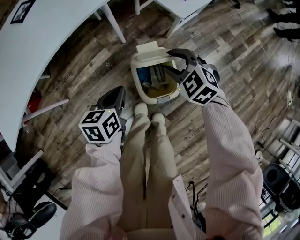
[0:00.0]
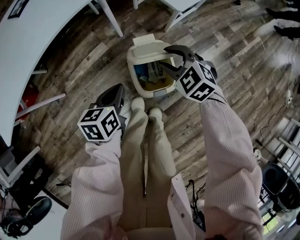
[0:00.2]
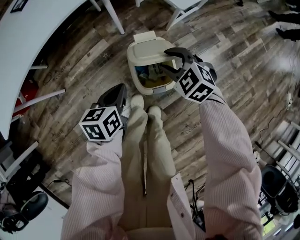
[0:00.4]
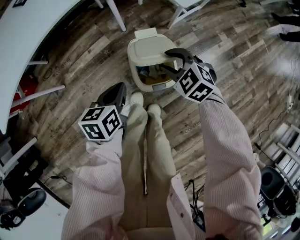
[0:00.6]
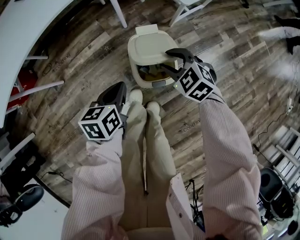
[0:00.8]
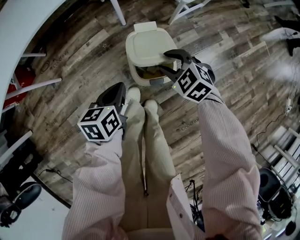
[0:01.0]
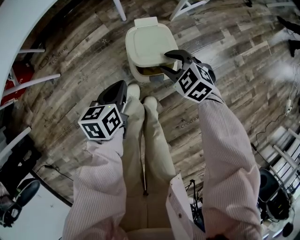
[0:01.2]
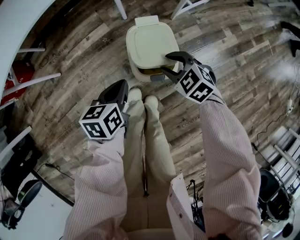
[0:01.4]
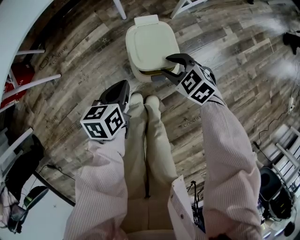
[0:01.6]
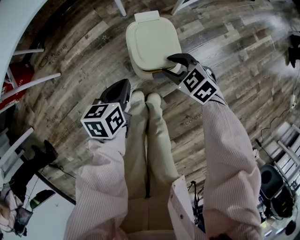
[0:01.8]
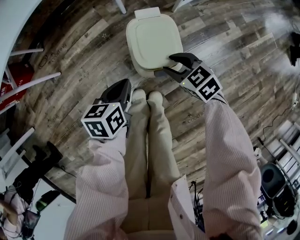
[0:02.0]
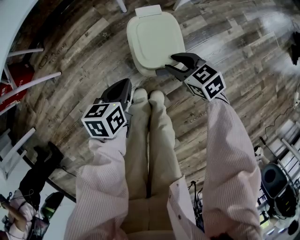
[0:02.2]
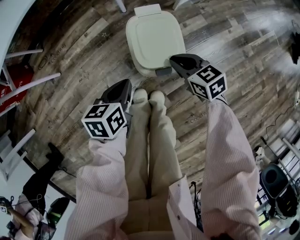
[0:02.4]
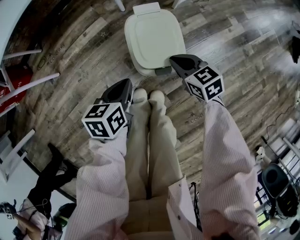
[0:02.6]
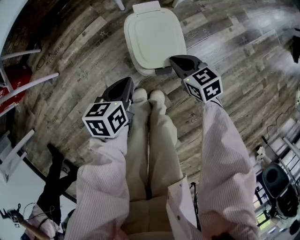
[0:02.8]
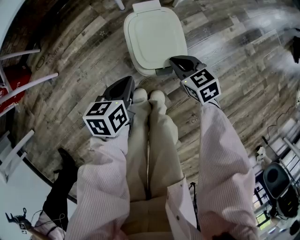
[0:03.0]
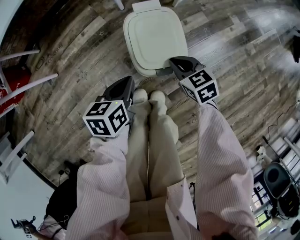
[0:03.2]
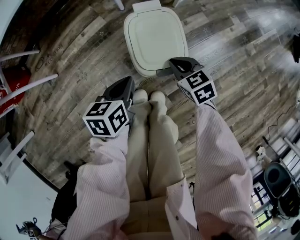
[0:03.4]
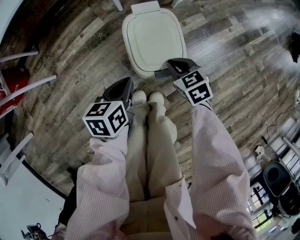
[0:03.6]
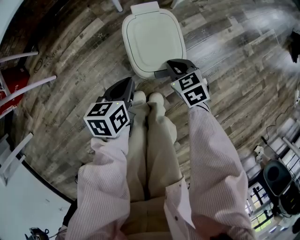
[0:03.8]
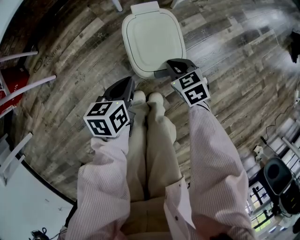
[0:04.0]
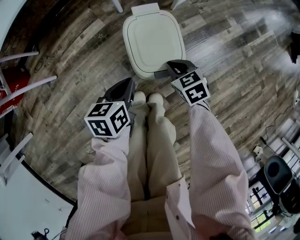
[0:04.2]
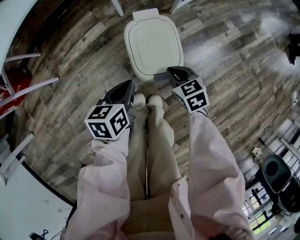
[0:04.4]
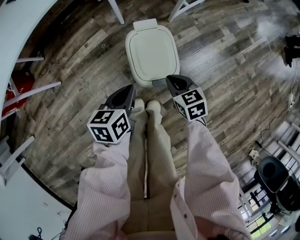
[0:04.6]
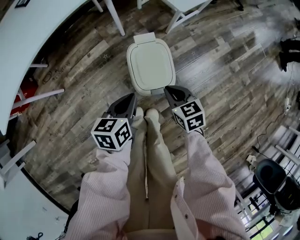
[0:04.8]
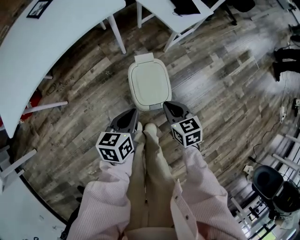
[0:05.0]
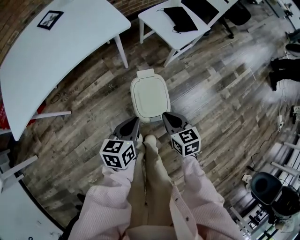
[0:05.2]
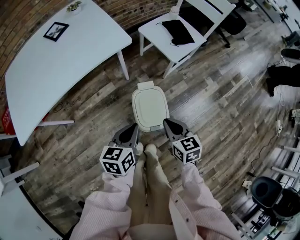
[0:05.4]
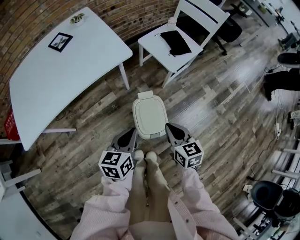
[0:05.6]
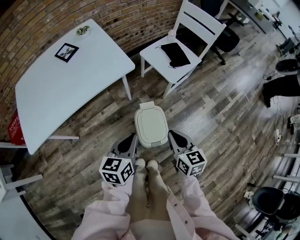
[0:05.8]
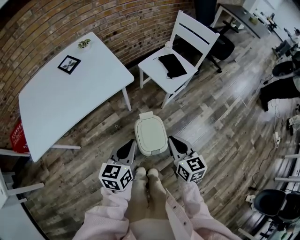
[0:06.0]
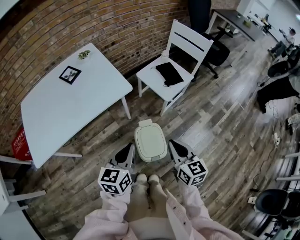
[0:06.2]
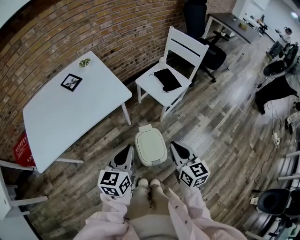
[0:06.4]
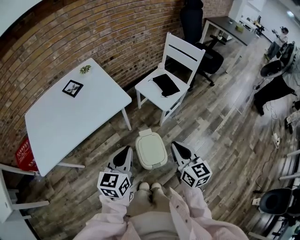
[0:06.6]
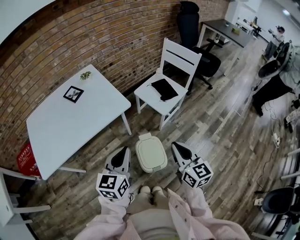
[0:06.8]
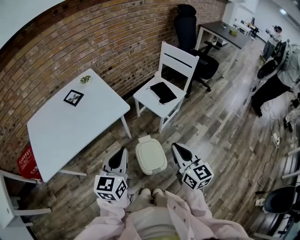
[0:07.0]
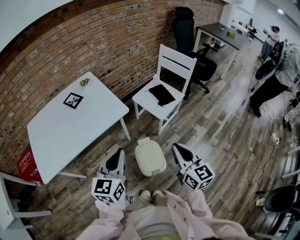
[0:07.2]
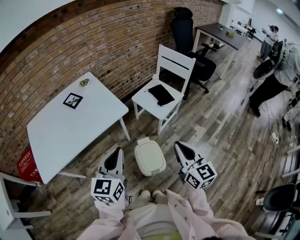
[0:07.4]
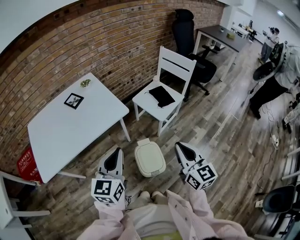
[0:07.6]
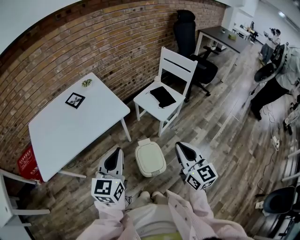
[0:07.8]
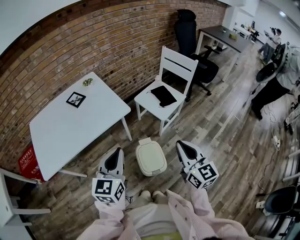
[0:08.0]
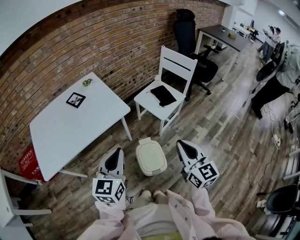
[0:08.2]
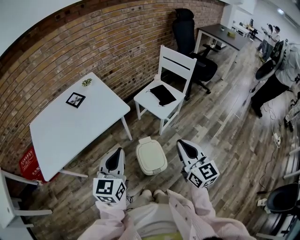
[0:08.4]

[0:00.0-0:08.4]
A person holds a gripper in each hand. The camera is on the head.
0:00.0 to 0:01.4: The left gripper moves backward, approximately 10 cm, while the right gripper moves backward and downward, roughly 15 cm.
0:01.4 to 0:02.8: The grippers both shift downward by about 5 cm. The right gripper turns by some 30 degrees, and closes.
0:02.8 to 0:04.2: The grippers make only small movements.
0:04.2 to 0:05.6: Both grippers move upward, approximately 30 cm. The right gripper turns by approximately 30 degrees.
0:05.6 to 0:07.0: Both grippers move upward, approximately 20 cm. The right gripper turns by approximately 30 degrees. Meanwhile the left gripper changes its angle by roughly 30 degrees.
0:07.0 to 0:08.4: The grippers make only small movements.

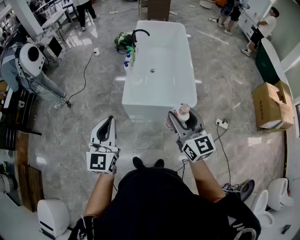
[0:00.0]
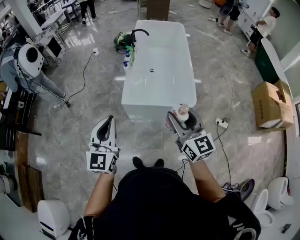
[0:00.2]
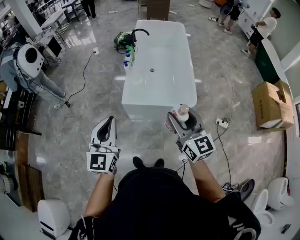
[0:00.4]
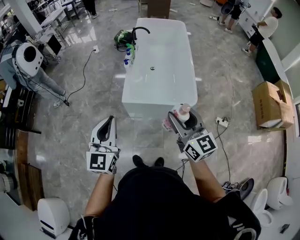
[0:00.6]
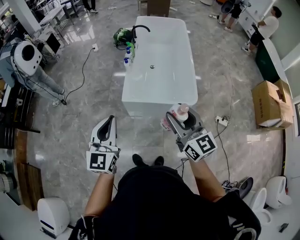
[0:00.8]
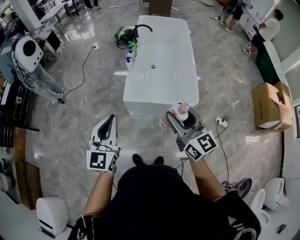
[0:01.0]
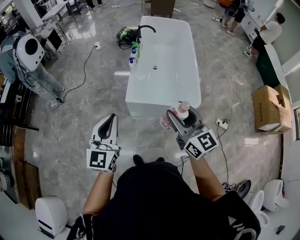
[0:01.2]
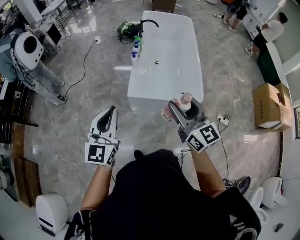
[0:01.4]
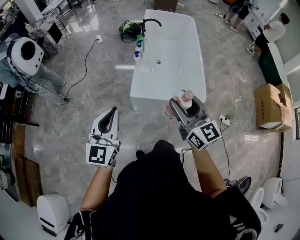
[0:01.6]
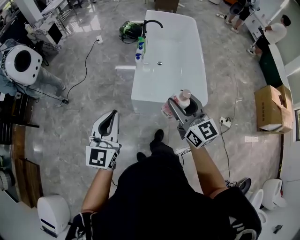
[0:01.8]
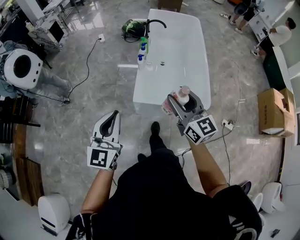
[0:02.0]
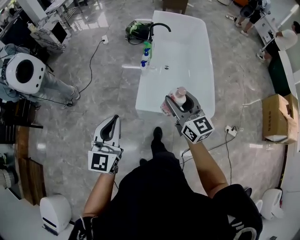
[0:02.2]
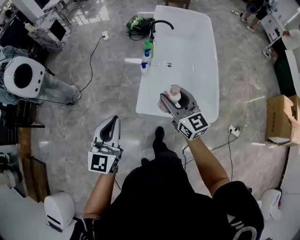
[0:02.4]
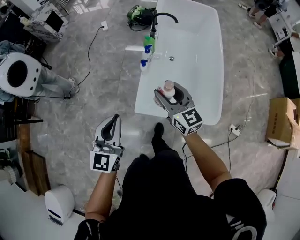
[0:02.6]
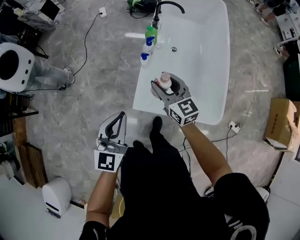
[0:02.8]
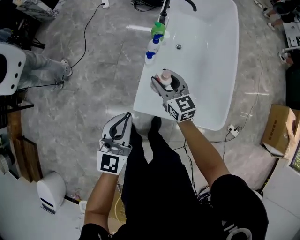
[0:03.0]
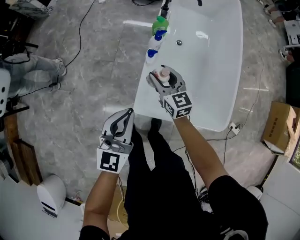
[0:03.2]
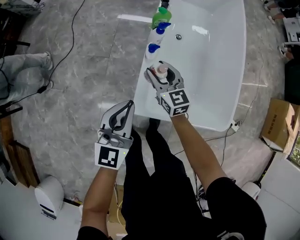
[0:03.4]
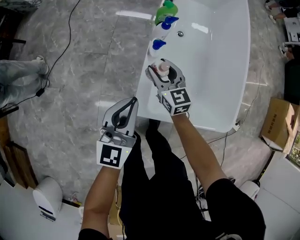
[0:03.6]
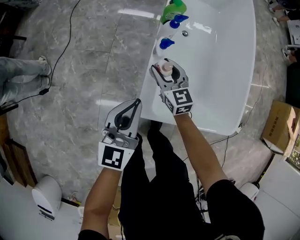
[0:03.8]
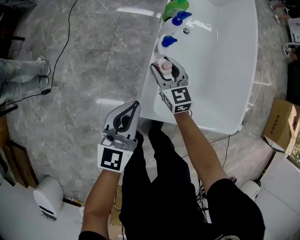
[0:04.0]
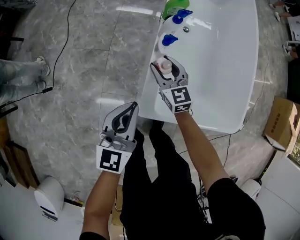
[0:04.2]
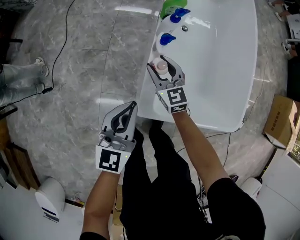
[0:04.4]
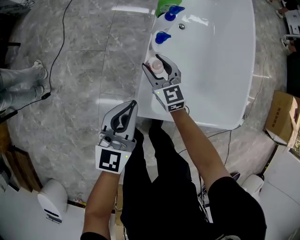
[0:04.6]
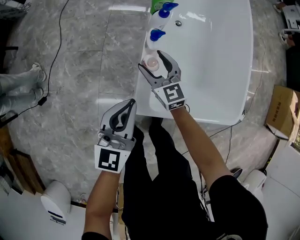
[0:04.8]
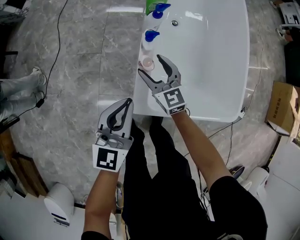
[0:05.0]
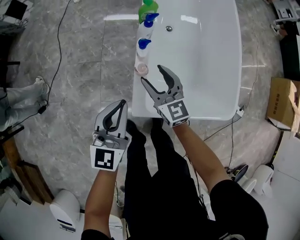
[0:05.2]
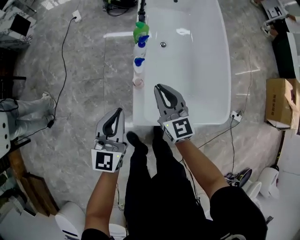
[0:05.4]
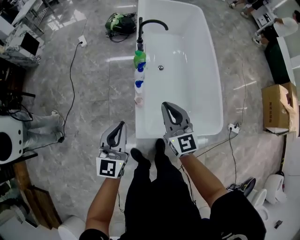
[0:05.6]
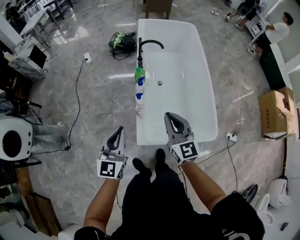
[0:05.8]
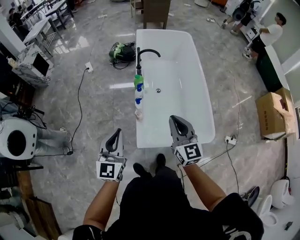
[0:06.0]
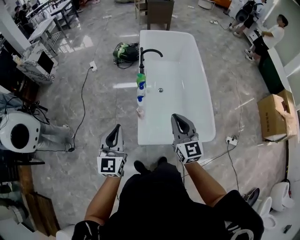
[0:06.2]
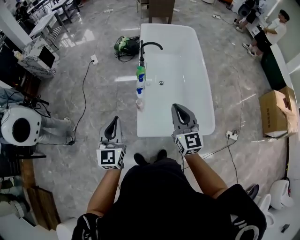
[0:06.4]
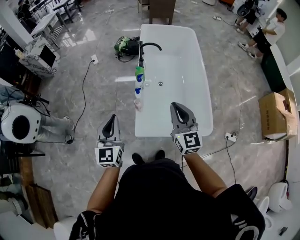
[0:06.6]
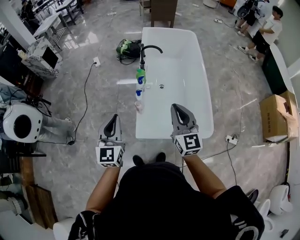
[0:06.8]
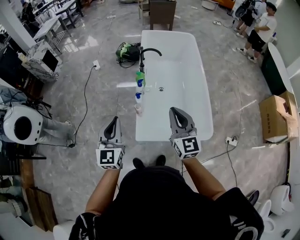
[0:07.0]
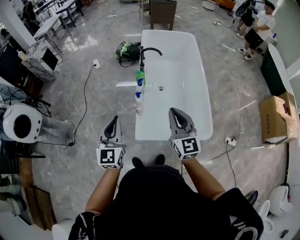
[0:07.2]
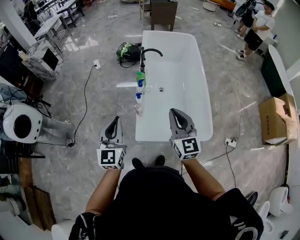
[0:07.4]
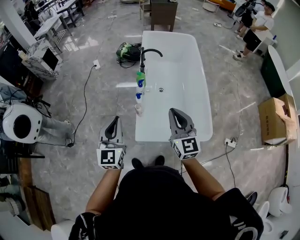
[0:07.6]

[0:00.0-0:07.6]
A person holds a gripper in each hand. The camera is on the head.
0:00.0 to 0:01.6: The grippers both shift to the left and forward by approximately 10 cm.
0:01.6 to 0:03.0: The grippers both shift forward and downward by about 50 cm. The right gripper rotates approximately 20 degrees.
0:03.0 to 0:04.6: The left gripper is displaced downward and forward by roughly 20 cm. Meanwhile the right gripper travels downward by approximately 25 cm.
0:04.6 to 0:06.0: The right gripper is displaced upward and backward by some 50 cm, changes its angle by roughly 30 degrees, and closes its fingers, while the left gripper travels upward by some 30 cm.
0:06.0 to 0:07.6: The left gripper ends up approximately 5 cm from where it was. Meanwhile the right gripper moves upward, roughly 5 cm.

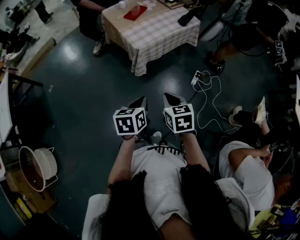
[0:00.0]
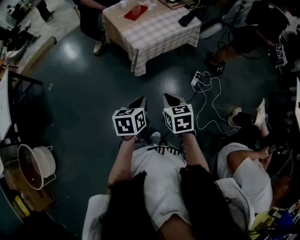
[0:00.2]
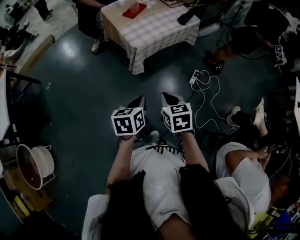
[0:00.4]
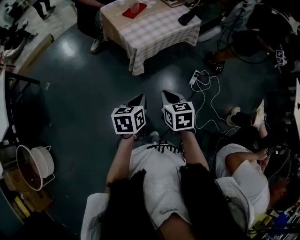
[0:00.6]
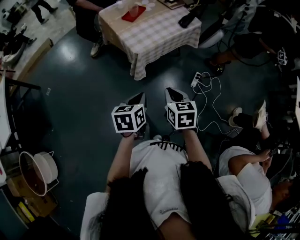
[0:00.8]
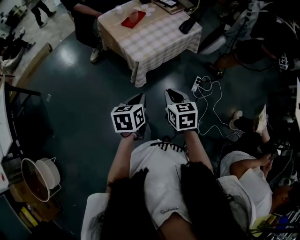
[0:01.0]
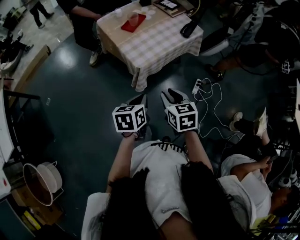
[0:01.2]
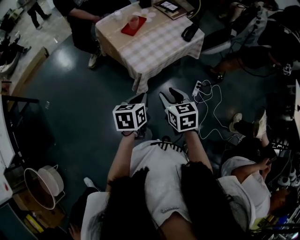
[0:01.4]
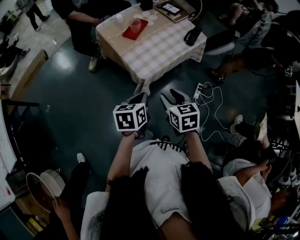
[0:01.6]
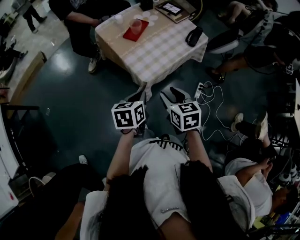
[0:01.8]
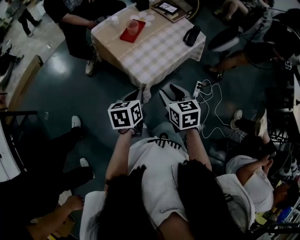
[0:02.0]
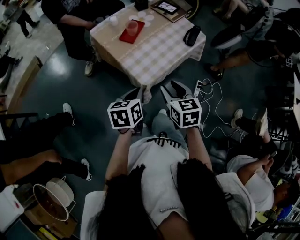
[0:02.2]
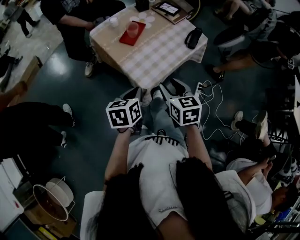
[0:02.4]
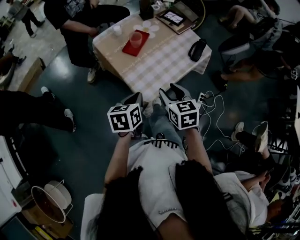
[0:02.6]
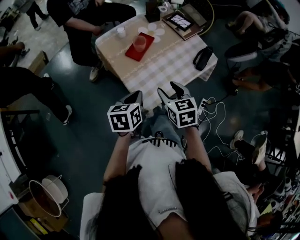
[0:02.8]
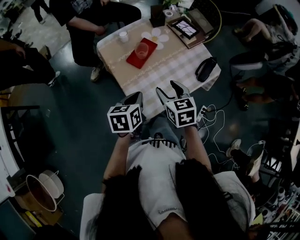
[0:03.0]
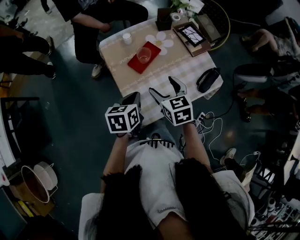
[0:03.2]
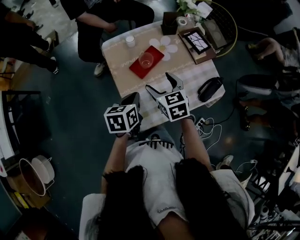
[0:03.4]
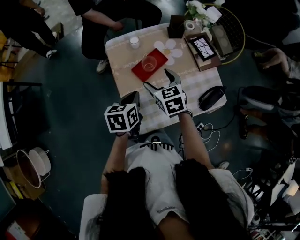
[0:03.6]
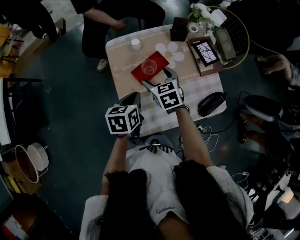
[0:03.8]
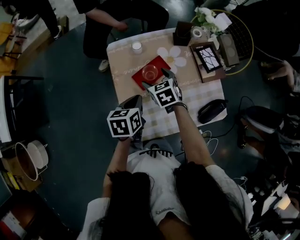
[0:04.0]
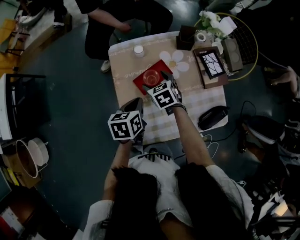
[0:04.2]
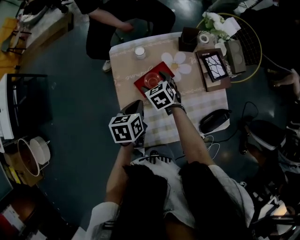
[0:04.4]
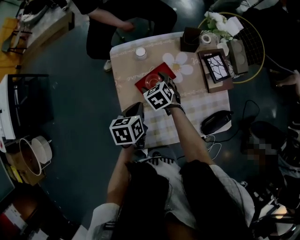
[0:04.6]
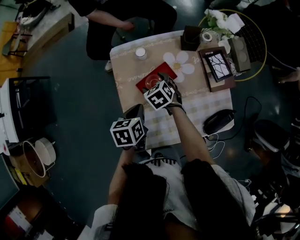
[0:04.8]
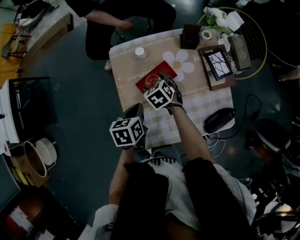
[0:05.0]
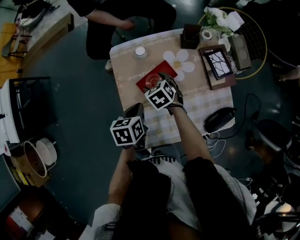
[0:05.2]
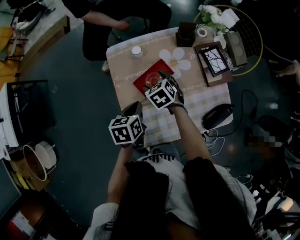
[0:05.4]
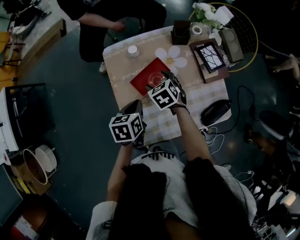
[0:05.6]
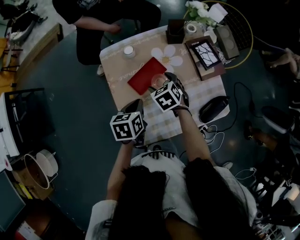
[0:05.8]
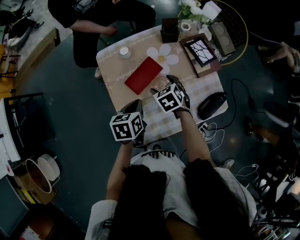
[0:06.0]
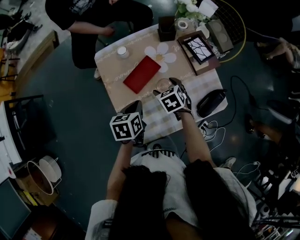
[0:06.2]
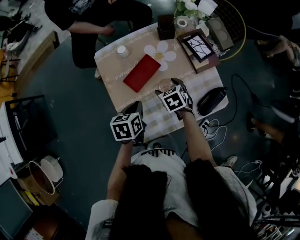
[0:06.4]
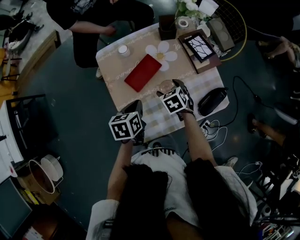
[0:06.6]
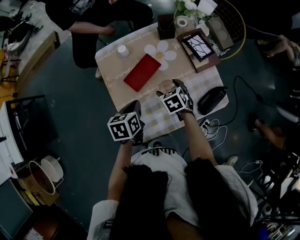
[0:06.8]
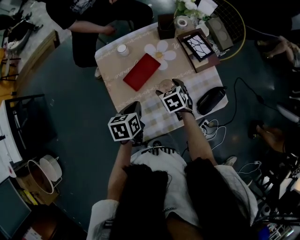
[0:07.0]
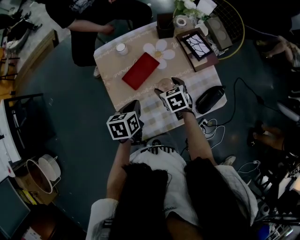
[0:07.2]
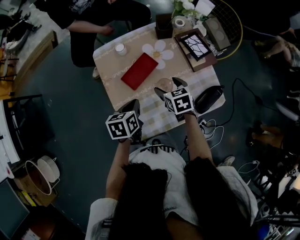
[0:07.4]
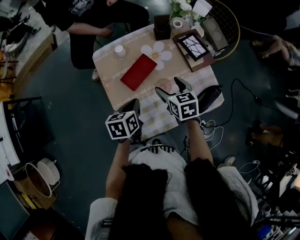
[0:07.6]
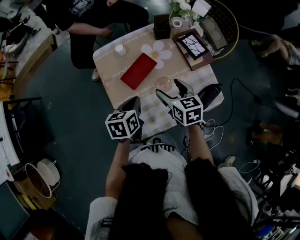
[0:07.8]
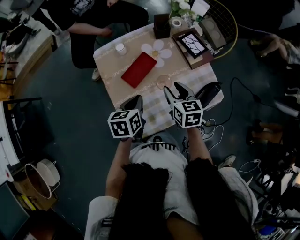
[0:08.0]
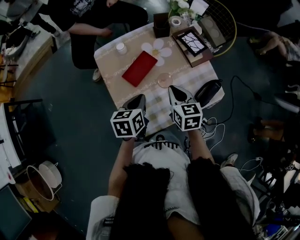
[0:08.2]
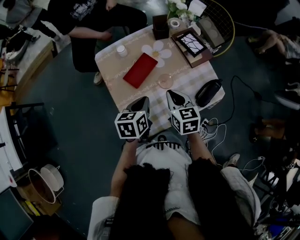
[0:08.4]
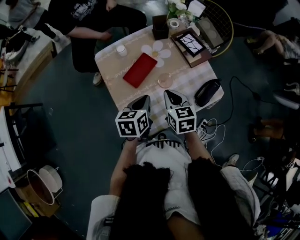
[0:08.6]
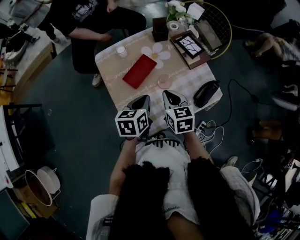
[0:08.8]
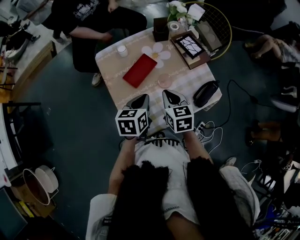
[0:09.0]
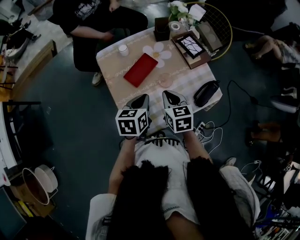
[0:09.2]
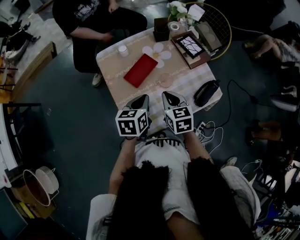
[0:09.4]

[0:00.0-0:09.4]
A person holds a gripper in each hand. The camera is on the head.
0:00.0 to 0:01.6: Both grippers move forward, approximately 20 cm. The right gripper opens its fingers.
0:01.6 to 0:03.2: The grippers both shift forward by some 30 cm. The right gripper opens up.
0:03.2 to 0:04.8: The right gripper shifts some 25 cm forward and downward, and rotates some 30 degrees; the left gripper goes some 10 cm forward and downward, and changes its angle by about 20 degrees.
0:04.8 to 0:06.2: The right gripper moves to the right and backward, some 15 cm.
0:06.2 to 0:07.8: The right gripper is displaced upward by approximately 10 cm, and turns by roughly 30 degrees.
0:07.8 to 0:09.4: The right gripper heads backward, covering some 5 cm, and closes its fingers.
